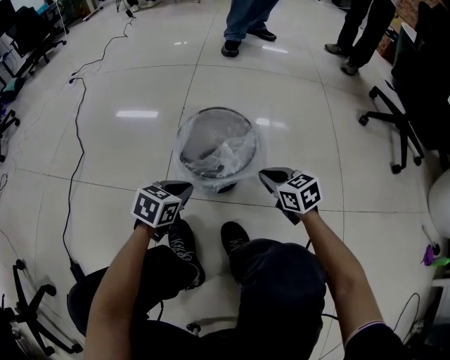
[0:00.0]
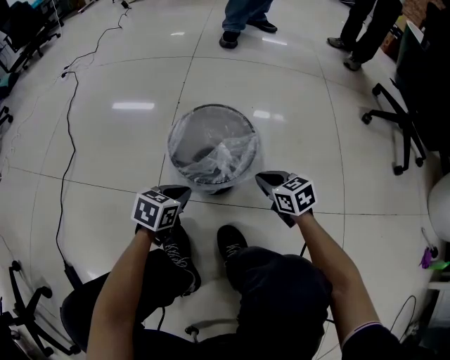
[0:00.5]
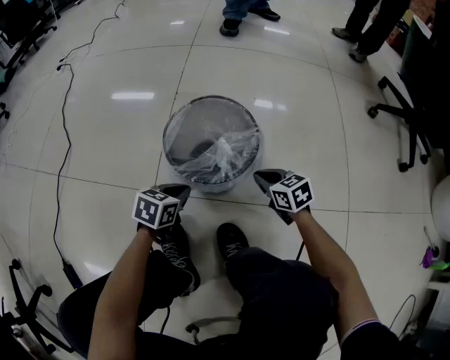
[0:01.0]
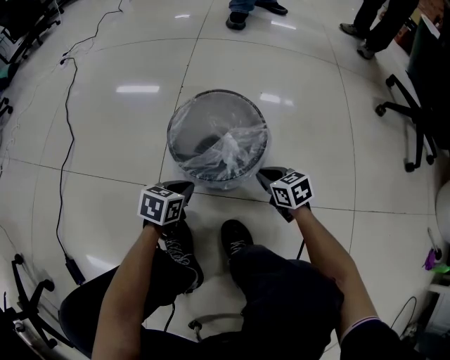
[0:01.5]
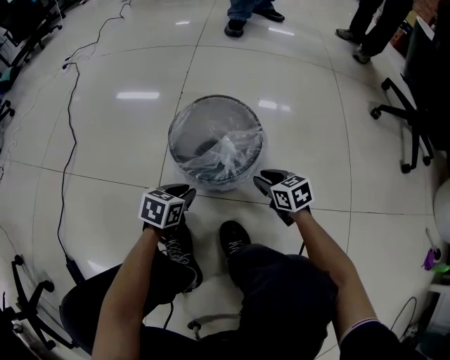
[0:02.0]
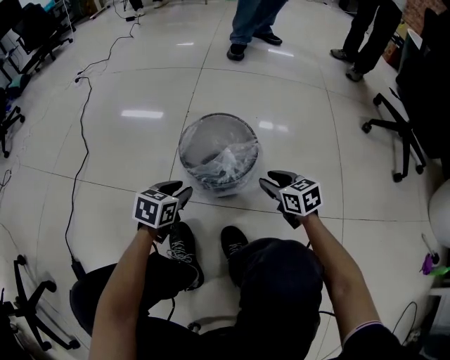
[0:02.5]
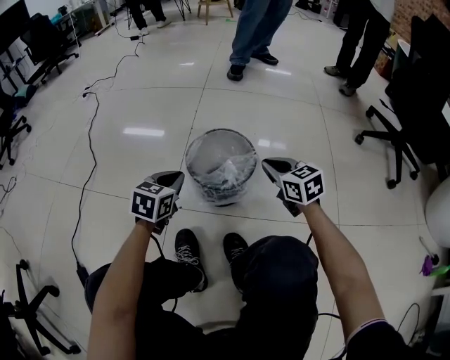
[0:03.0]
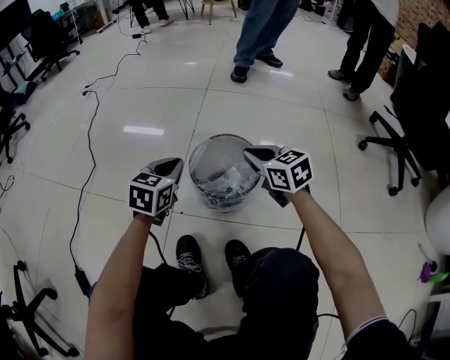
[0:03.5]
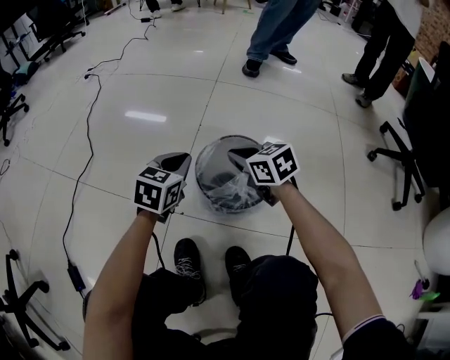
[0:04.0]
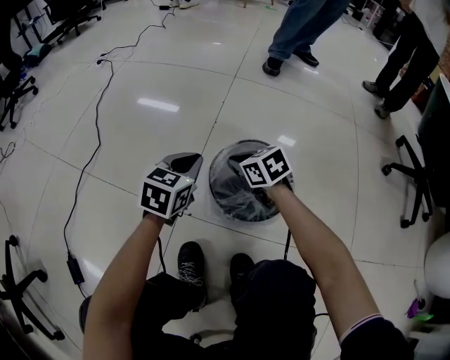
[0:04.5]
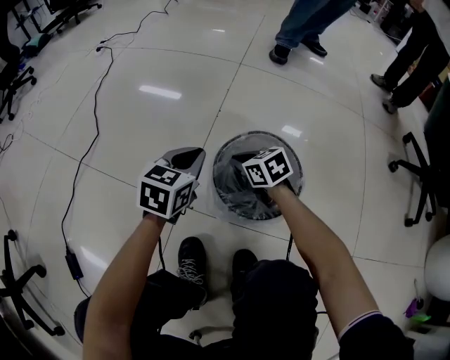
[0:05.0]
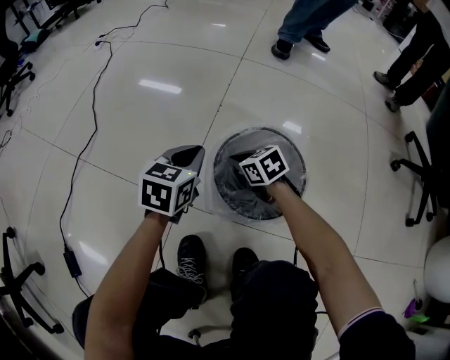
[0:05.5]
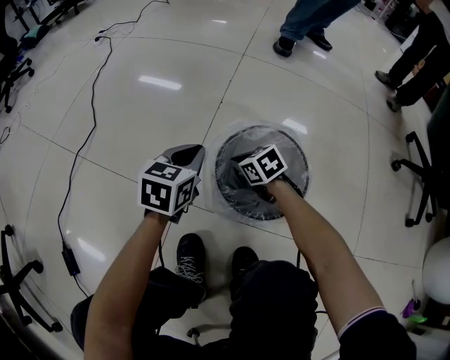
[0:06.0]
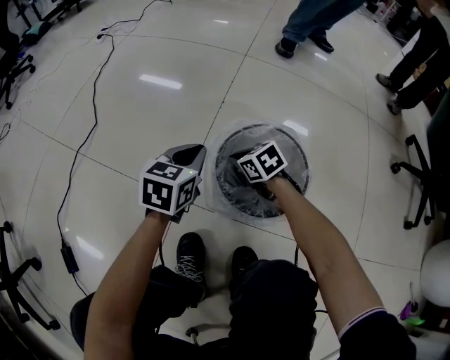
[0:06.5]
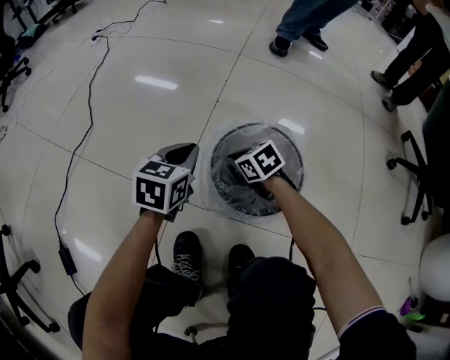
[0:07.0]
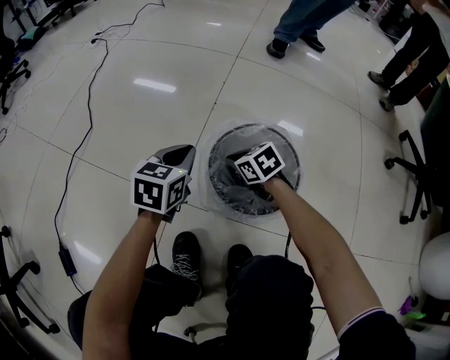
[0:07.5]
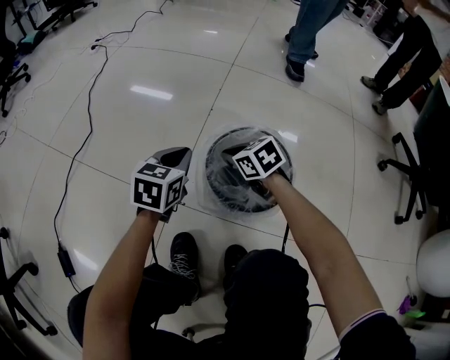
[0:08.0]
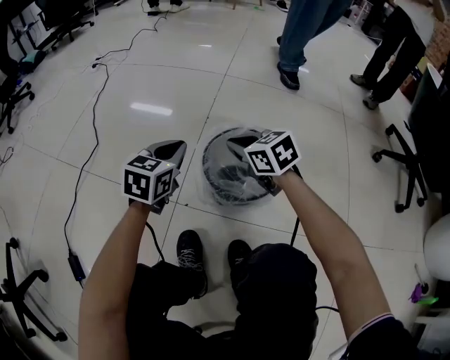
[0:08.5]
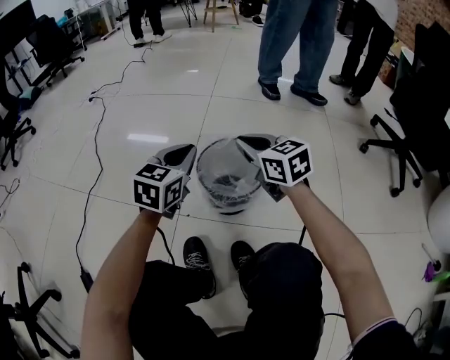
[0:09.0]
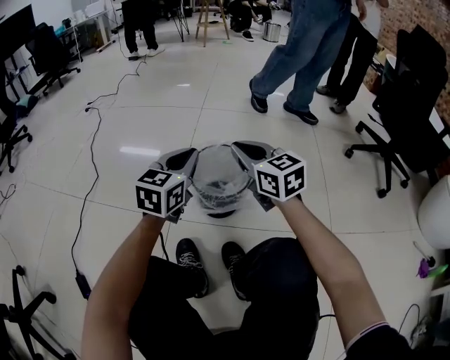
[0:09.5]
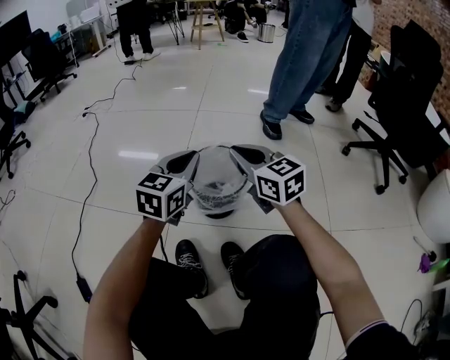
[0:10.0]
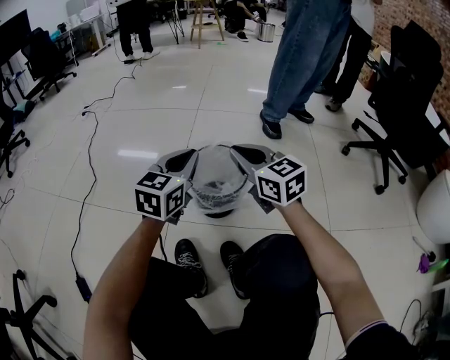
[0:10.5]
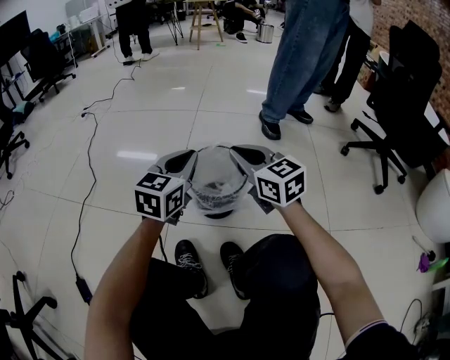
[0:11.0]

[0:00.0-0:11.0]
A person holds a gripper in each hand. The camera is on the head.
0:00.0 to 0:02.0: The grippers both shift downward by about 10 cm. The right gripper opens up.
0:02.0 to 0:03.5: The grippers both shift upward by some 25 cm. The right gripper turns by about 20 degrees, and closes its fingers; the left gripper swivels roughly 30 degrees.
0:03.5 to 0:05.5: The left gripper moves downward and forward, about 10 cm, while the right gripper travels downward, to the left and forward by roughly 25 cm, and turns by approximately 30 degrees.
0:05.5 to 0:07.5: There are only small adjustments of the grippers.
0:07.5 to 0:09.0: The right gripper goes about 25 cm upward, and angles its fingers upward, by roughly 30 degrees, while the left gripper goes approximately 15 cm upward and backward, and rotates roughly 20 degrees.
0:09.0 to 0:11.0: The right gripper travels backward by about 5 cm. The left gripper moves about 10 cm.

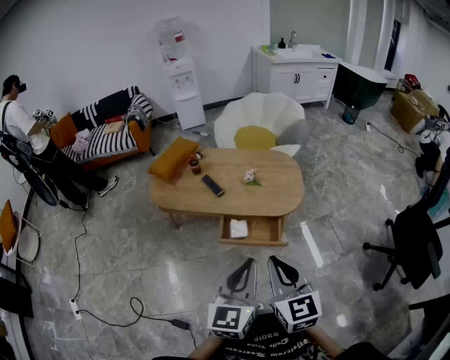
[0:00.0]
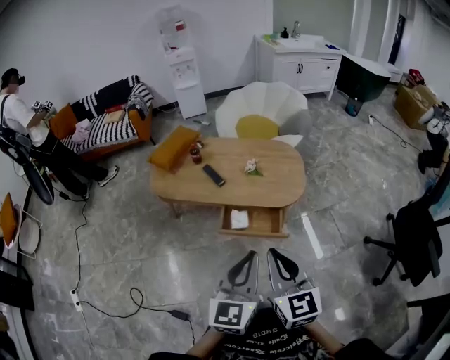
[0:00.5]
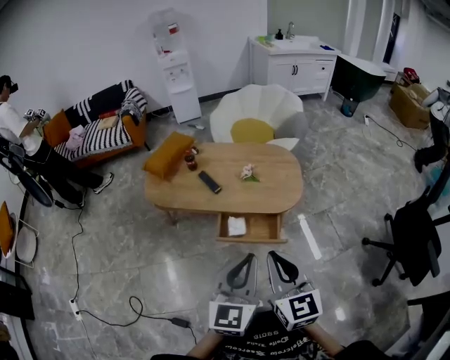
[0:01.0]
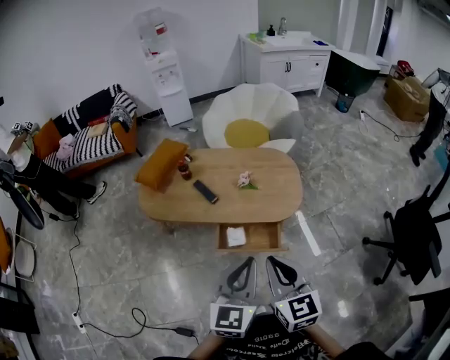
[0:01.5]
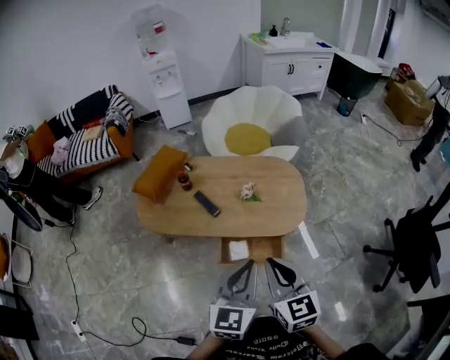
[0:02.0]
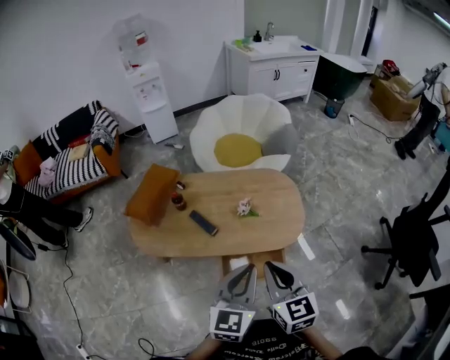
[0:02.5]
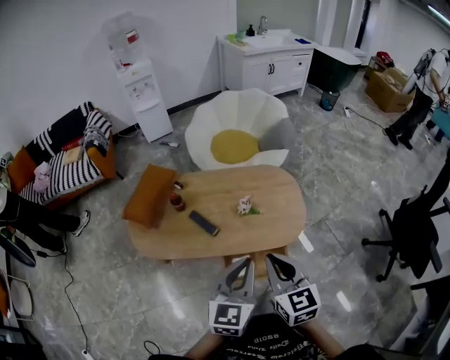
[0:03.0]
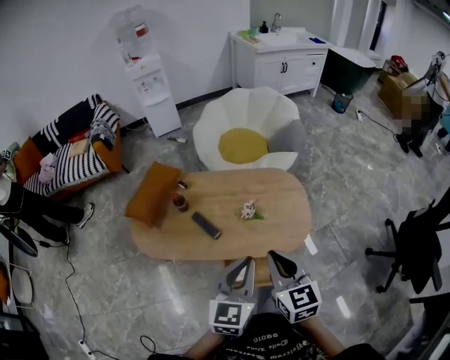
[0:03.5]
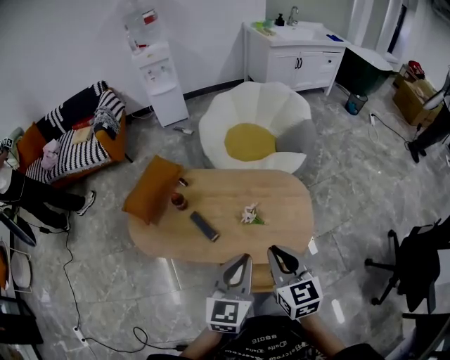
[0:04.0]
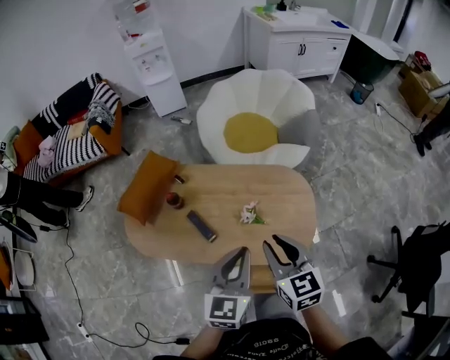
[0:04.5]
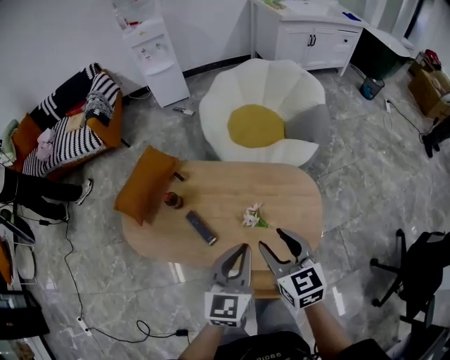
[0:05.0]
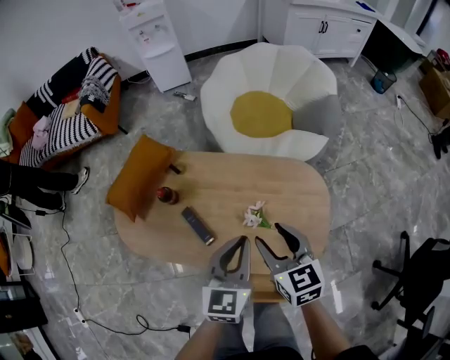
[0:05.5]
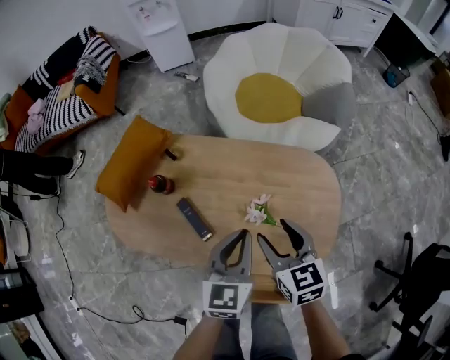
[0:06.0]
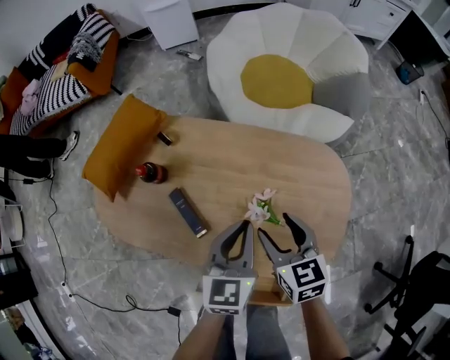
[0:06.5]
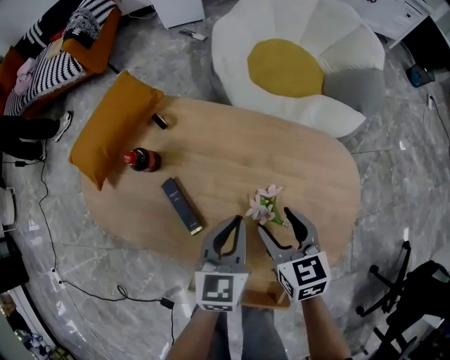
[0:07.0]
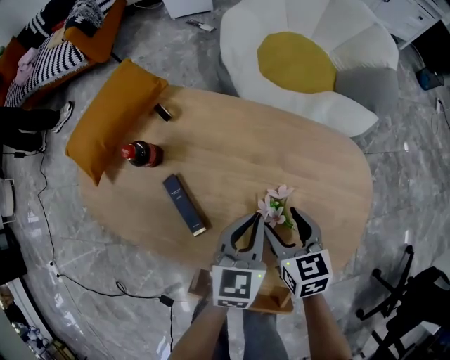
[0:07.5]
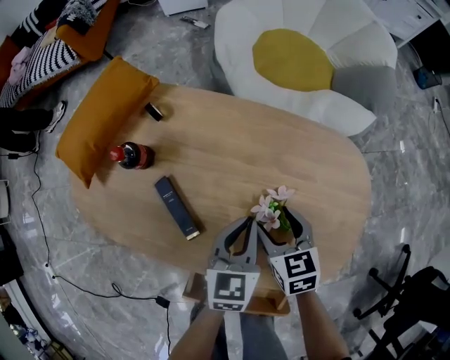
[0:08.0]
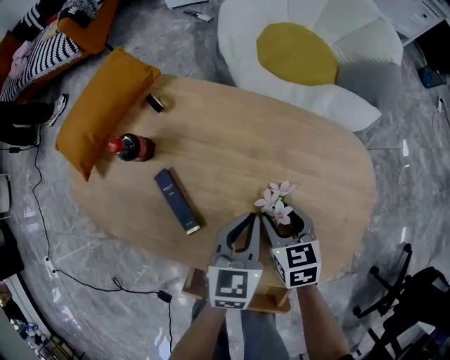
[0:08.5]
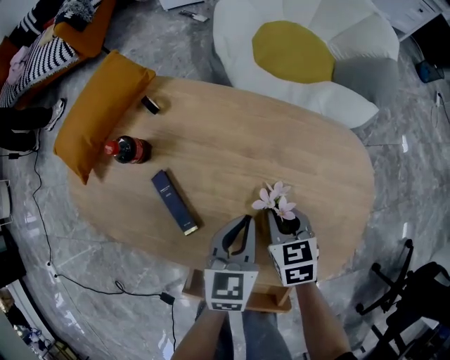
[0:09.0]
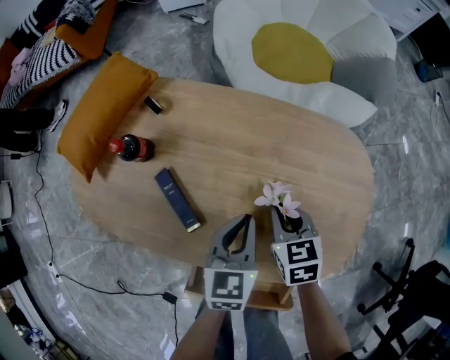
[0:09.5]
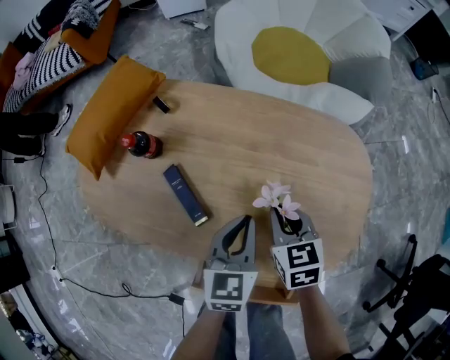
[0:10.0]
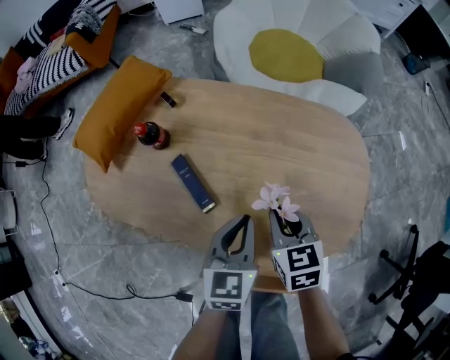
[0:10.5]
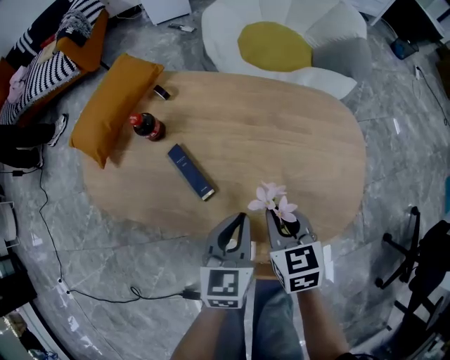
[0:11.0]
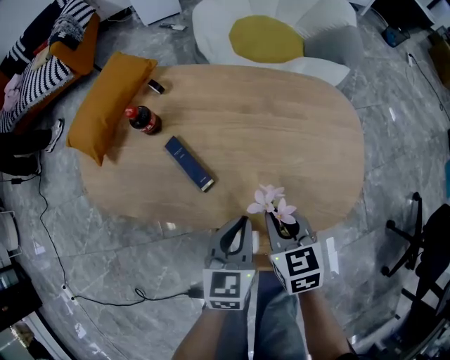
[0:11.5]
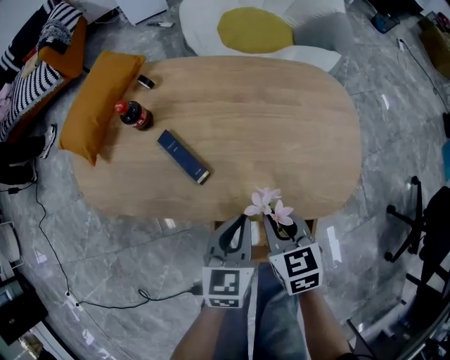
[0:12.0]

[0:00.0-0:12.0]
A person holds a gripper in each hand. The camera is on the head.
0:00.0 to 0:02.0: The grippers both shift forward by approximately 20 cm.
0:02.0 to 0:04.0: Both grippers travel together forward, about 20 cm.
0:04.0 to 0:06.0: The left gripper shifts some 25 cm forward and downward. The right gripper shifts roughly 25 cm downward and forward, and opens its fingers.
0:06.0 to 0:08.0: Both grippers move downward, about 20 cm.
0:08.0 to 0:10.0: The right gripper closes.
0:10.0 to 0:12.0: The grippers both shift backward by approximately 15 cm.

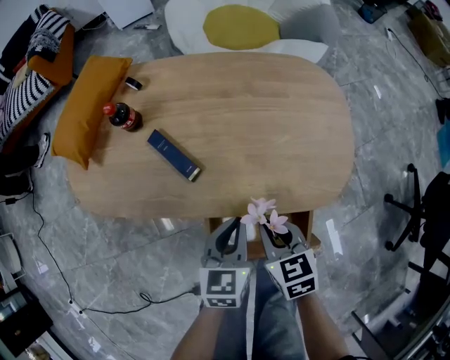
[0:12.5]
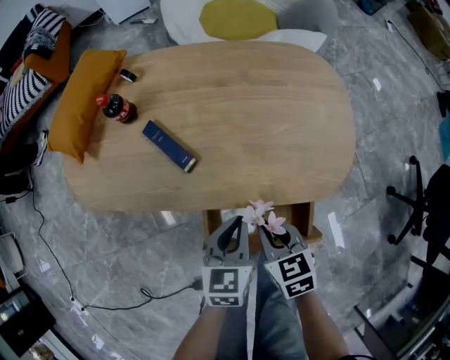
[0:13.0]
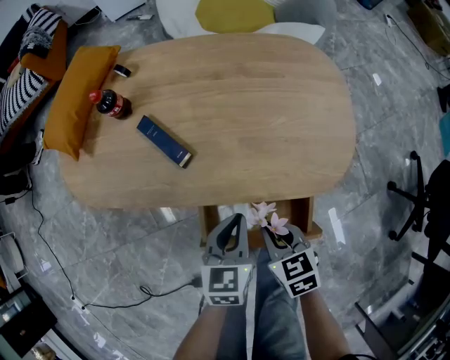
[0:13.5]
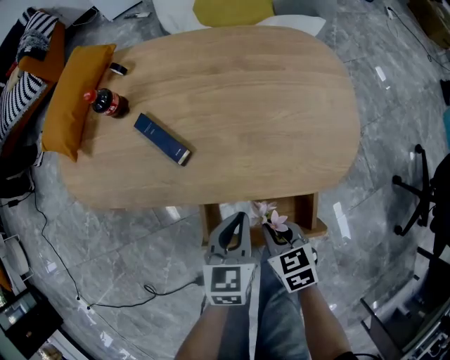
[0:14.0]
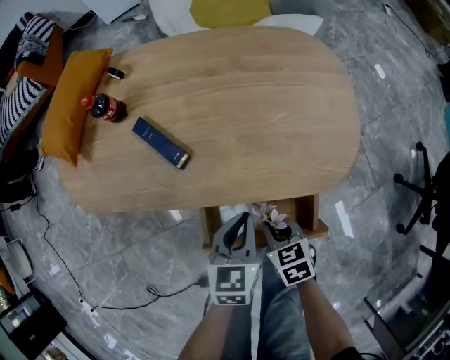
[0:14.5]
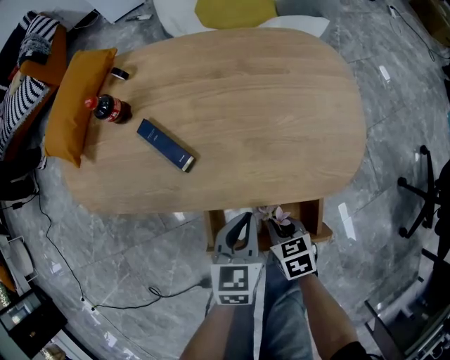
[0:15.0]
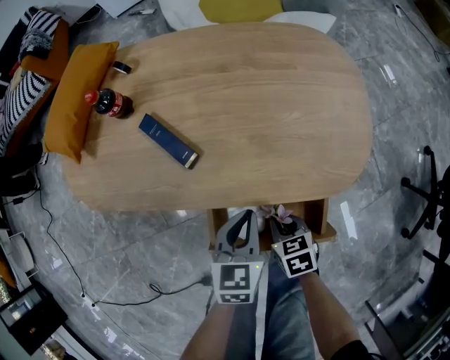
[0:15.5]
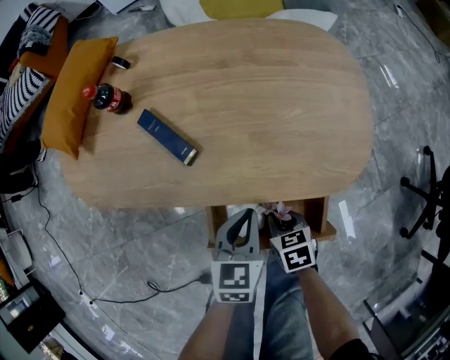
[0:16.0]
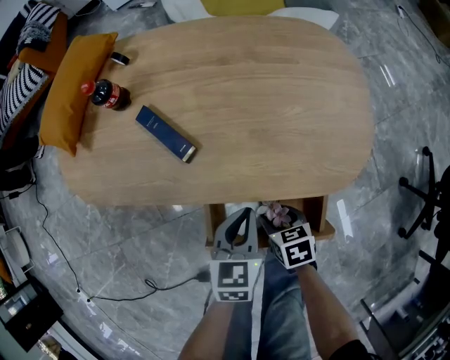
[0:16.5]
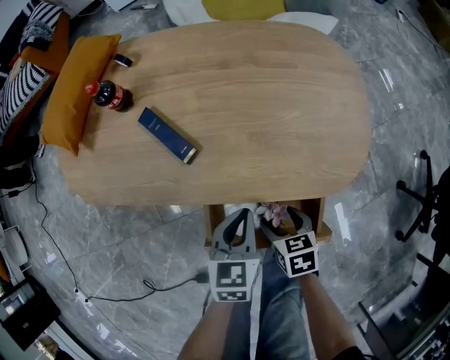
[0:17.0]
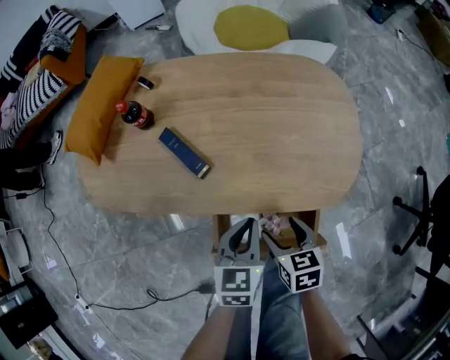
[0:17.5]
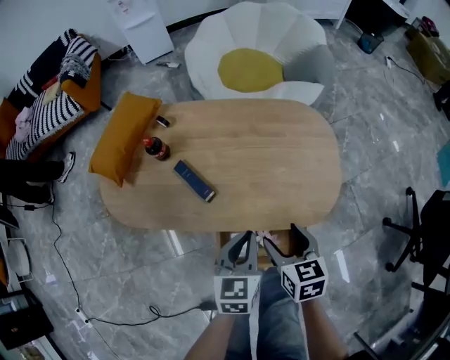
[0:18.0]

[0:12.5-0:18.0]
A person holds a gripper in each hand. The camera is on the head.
0:12.5 to 0:14.5: The right gripper moves downward and backward, about 10 cm. The left gripper shifts by approximately 5 cm.
0:14.5 to 0:16.0: The grippers stay close to where they were, moving slightly.
0:16.0 to 0:18.0: The right gripper moves upward, about 25 cm, rotates some 20 degrees, and opens; the left gripper goes some 15 cm upward.
